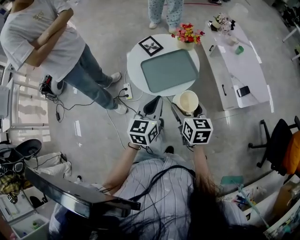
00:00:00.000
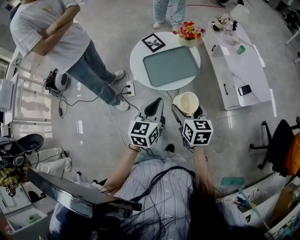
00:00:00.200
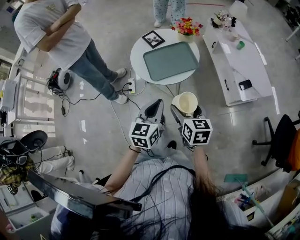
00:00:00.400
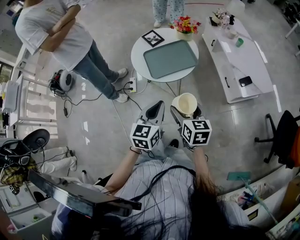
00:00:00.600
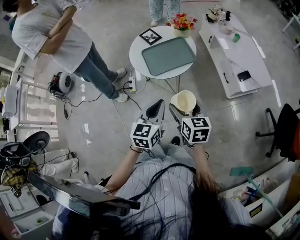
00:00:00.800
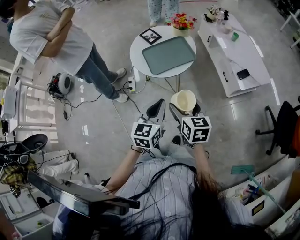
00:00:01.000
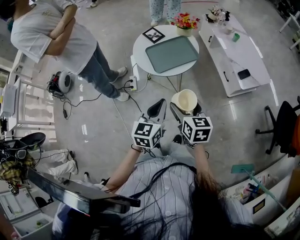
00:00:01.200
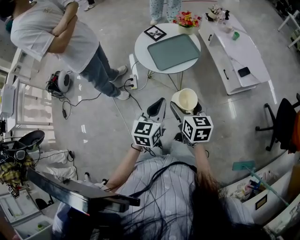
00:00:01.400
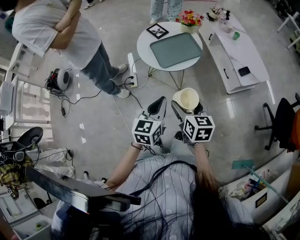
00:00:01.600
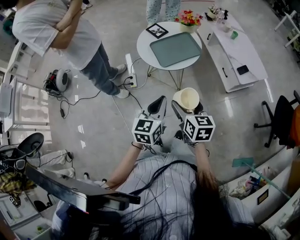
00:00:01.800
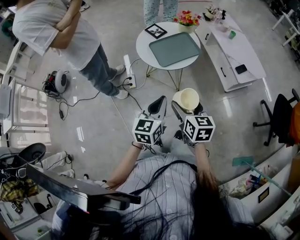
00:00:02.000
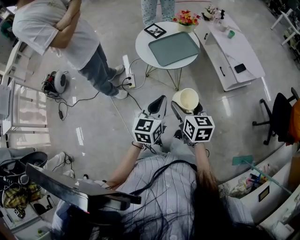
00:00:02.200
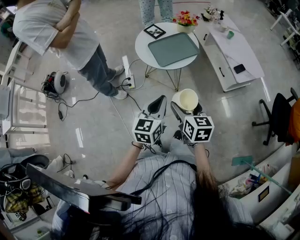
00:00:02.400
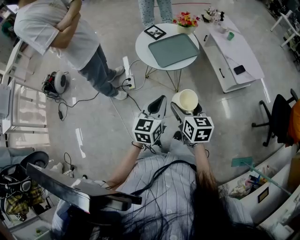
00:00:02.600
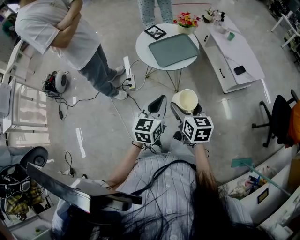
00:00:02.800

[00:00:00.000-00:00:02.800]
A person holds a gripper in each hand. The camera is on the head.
00:00:00.000 to 00:00:01.400: Both grippers move backward, roughly 15 cm.
00:00:01.400 to 00:00:02.800: There are only small adjustments of the grippers.

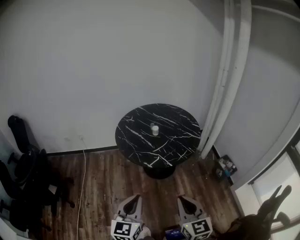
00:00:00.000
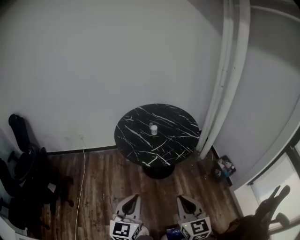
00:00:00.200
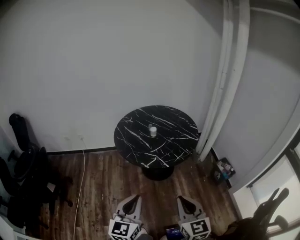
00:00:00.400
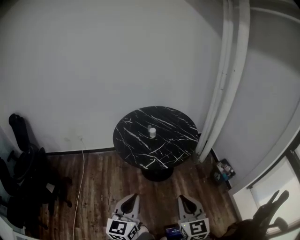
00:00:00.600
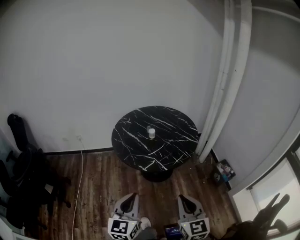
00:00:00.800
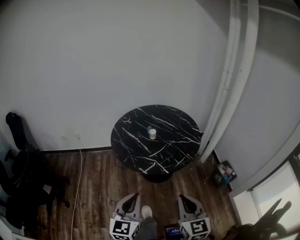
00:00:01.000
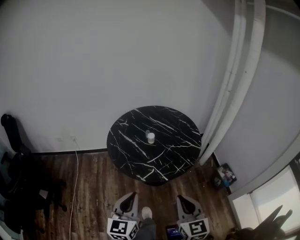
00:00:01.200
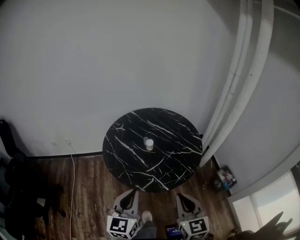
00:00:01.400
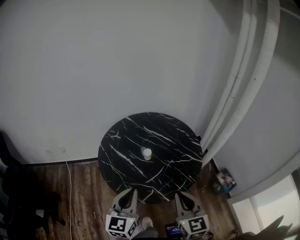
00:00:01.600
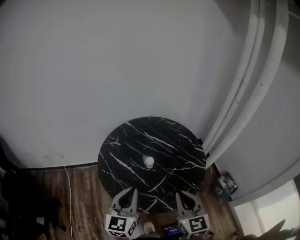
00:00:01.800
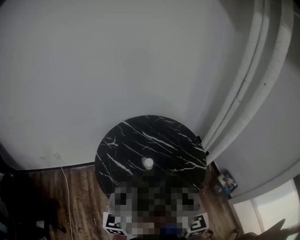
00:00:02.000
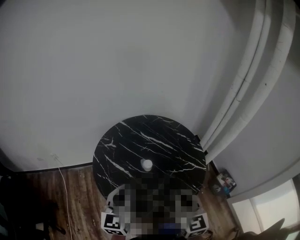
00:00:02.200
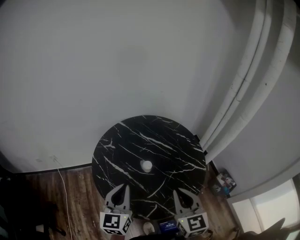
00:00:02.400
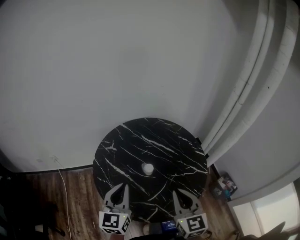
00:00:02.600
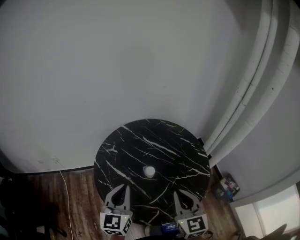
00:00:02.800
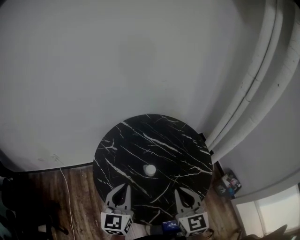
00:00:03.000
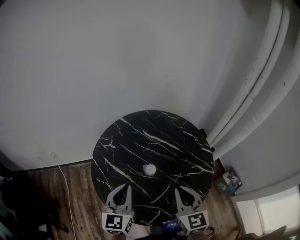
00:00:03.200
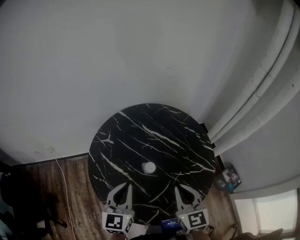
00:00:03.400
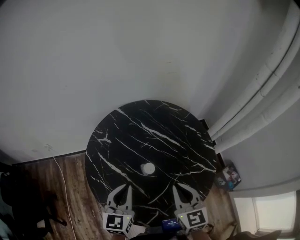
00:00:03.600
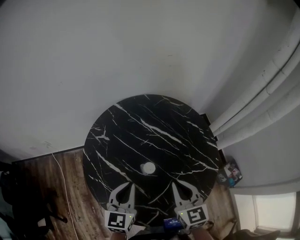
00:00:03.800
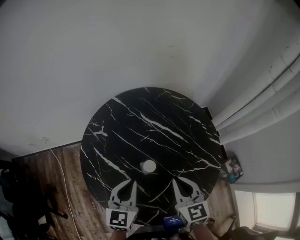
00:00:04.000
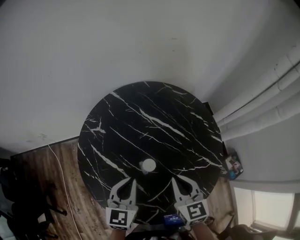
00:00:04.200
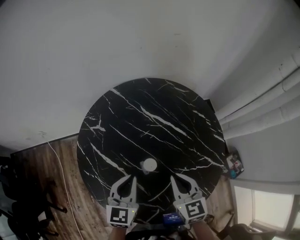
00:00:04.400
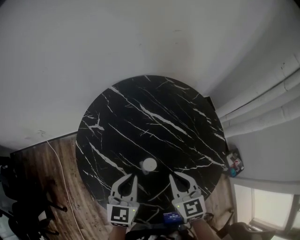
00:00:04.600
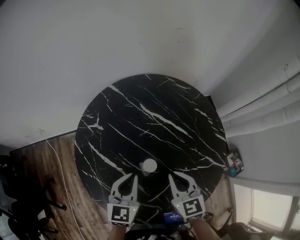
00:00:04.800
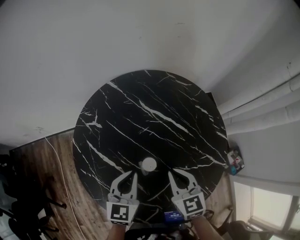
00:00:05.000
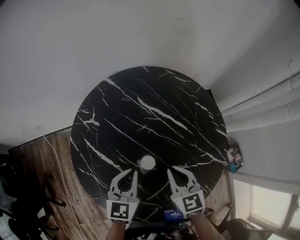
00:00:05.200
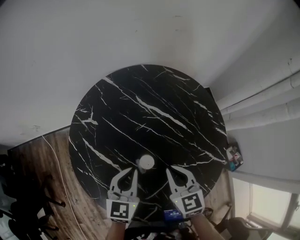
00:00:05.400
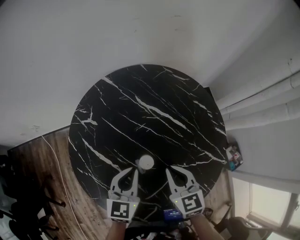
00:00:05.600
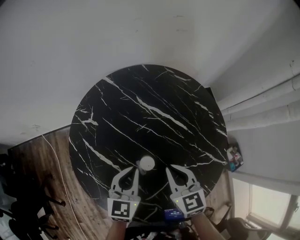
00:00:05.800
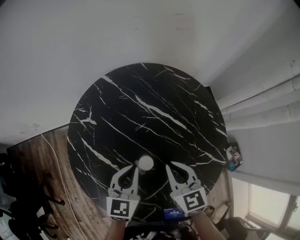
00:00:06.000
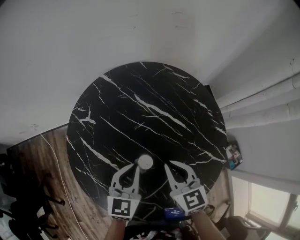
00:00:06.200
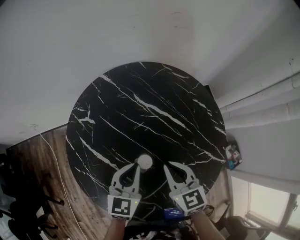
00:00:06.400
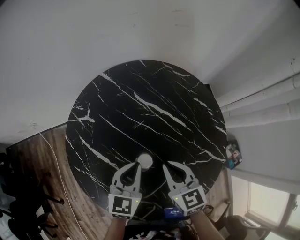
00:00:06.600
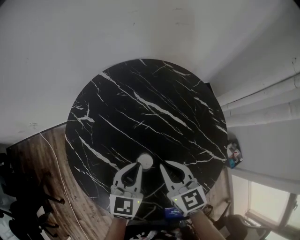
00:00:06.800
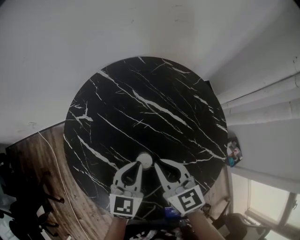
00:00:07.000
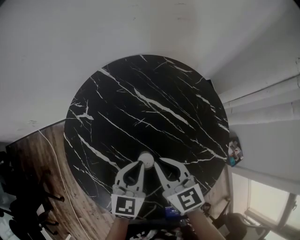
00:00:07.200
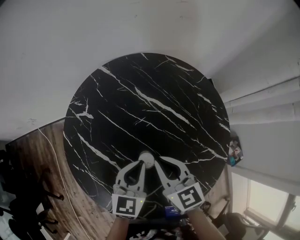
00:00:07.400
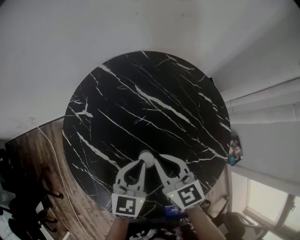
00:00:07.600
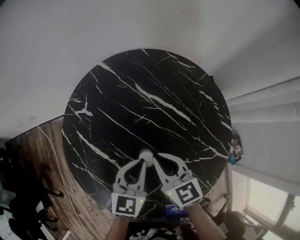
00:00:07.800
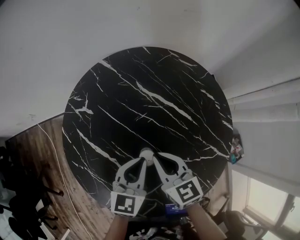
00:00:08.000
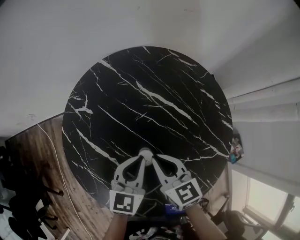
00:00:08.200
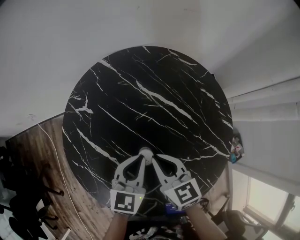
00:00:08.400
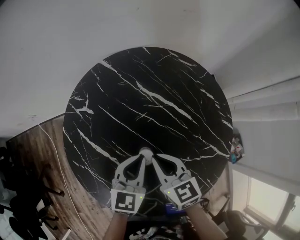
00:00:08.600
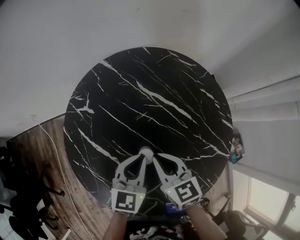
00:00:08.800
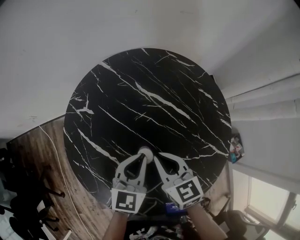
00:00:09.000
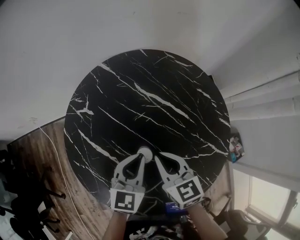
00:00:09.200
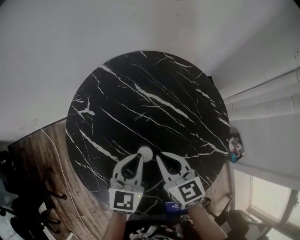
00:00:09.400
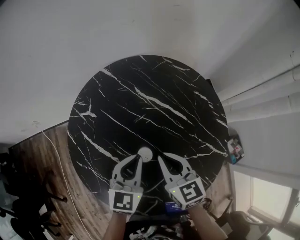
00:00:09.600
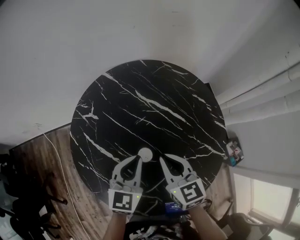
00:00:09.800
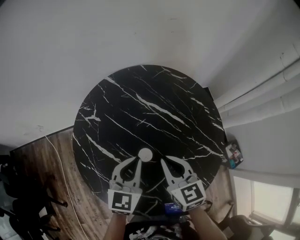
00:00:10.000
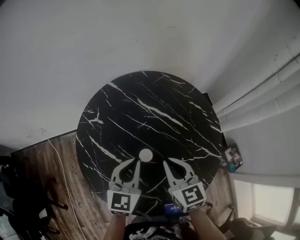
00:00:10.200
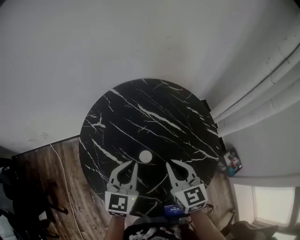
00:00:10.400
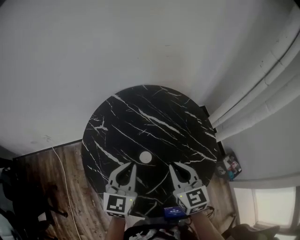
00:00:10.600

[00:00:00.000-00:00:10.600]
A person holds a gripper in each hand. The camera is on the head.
00:00:00.000 to 00:00:01.600: Both grippers move forward, some 30 cm.
00:00:01.600 to 00:00:03.000: Both grippers travel together forward, approximately 20 cm.
00:00:03.000 to 00:00:04.600: Both grippers move downward and forward, about 20 cm. The right gripper turns by approximately 20 degrees.
00:00:04.600 to 00:00:06.000: The grippers make only small movements.
00:00:06.000 to 00:00:09.000: There are only small adjustments of the grippers.
00:00:09.000 to 00:00:10.600: The left gripper heads upward and backward, covering approximately 10 cm, while the right gripper heads upward, backward and to the right, covering approximately 15 cm.

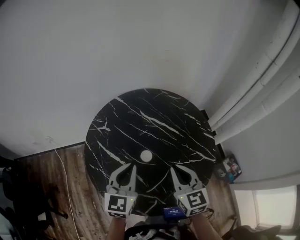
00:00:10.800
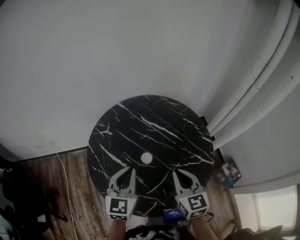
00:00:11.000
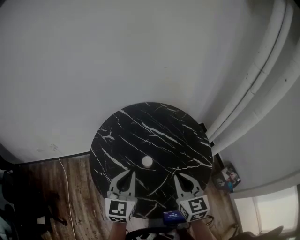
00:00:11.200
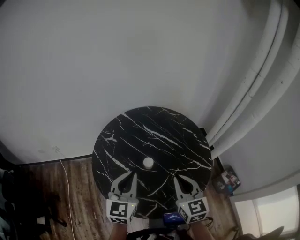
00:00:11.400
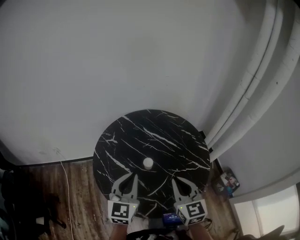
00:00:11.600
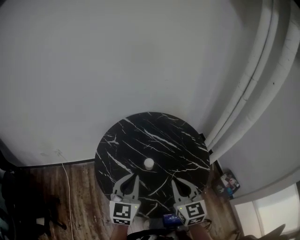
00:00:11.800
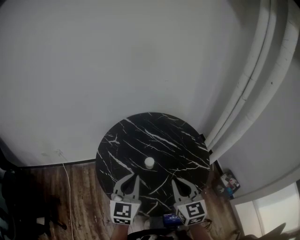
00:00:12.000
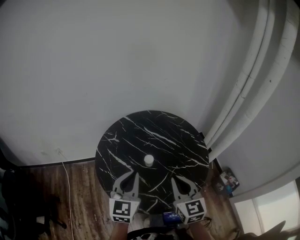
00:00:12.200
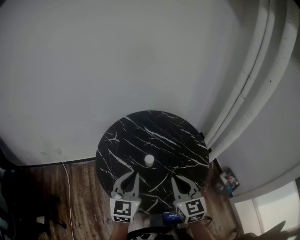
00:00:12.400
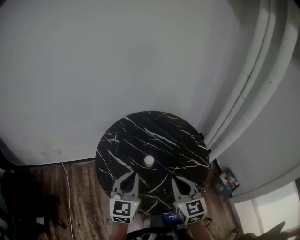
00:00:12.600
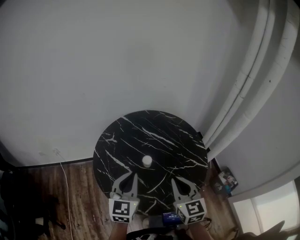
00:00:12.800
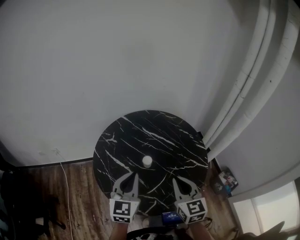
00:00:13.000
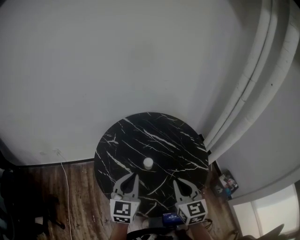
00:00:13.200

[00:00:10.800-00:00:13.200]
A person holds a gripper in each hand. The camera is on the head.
00:00:10.800 to 00:00:12.000: Both grippers travel together backward and upward, some 10 cm.
00:00:12.000 to 00:00:13.200: The grippers stay close to where they were, moving slightly.

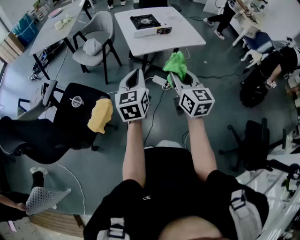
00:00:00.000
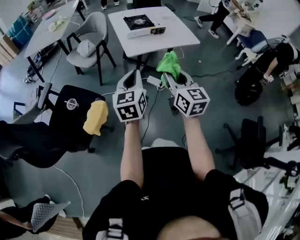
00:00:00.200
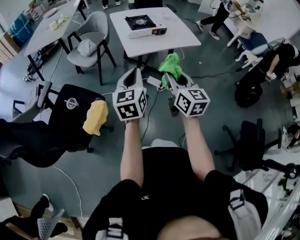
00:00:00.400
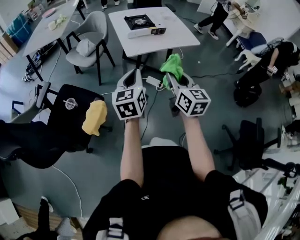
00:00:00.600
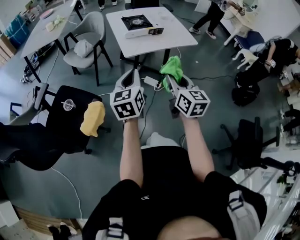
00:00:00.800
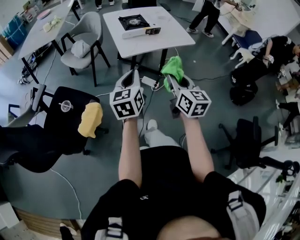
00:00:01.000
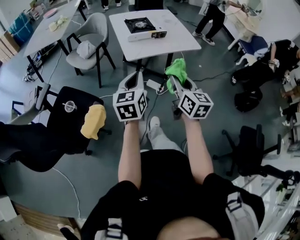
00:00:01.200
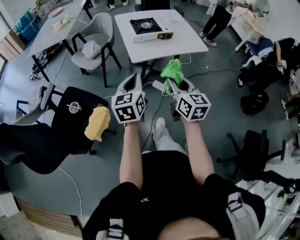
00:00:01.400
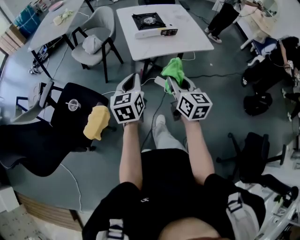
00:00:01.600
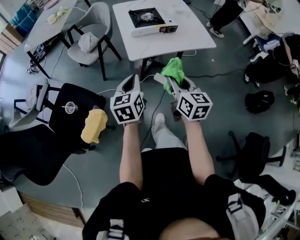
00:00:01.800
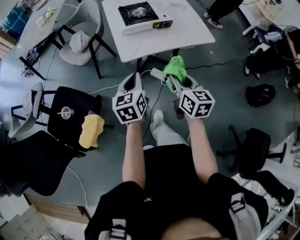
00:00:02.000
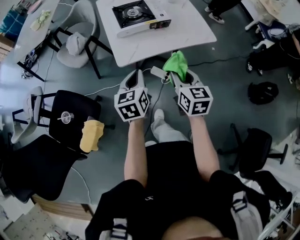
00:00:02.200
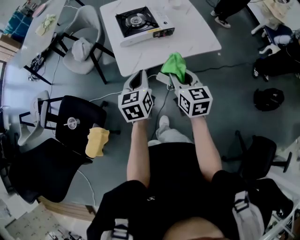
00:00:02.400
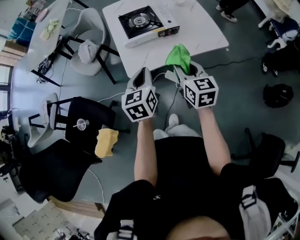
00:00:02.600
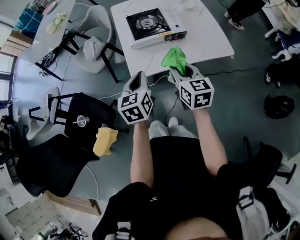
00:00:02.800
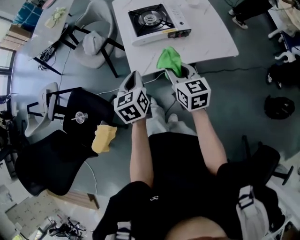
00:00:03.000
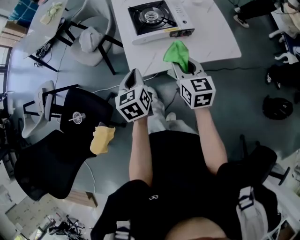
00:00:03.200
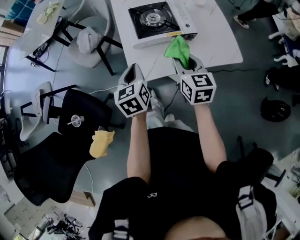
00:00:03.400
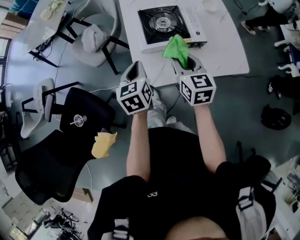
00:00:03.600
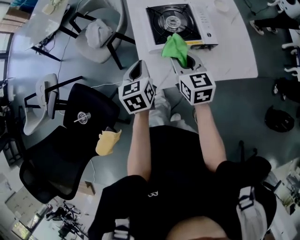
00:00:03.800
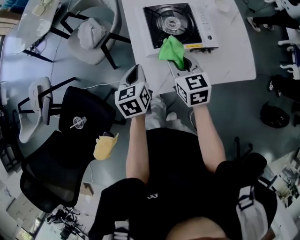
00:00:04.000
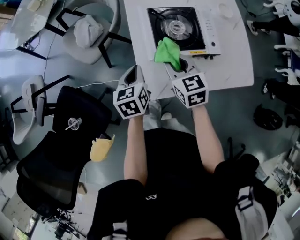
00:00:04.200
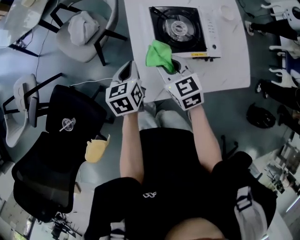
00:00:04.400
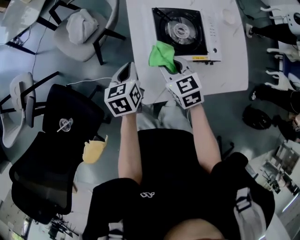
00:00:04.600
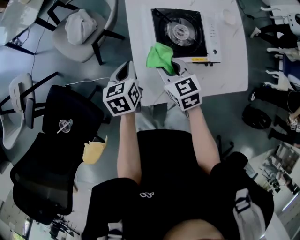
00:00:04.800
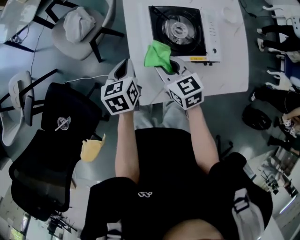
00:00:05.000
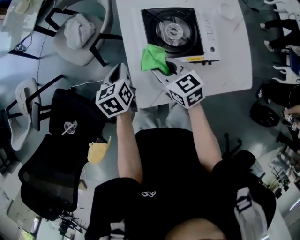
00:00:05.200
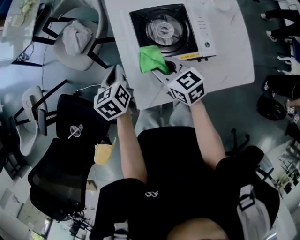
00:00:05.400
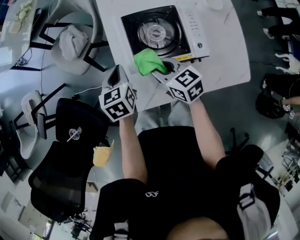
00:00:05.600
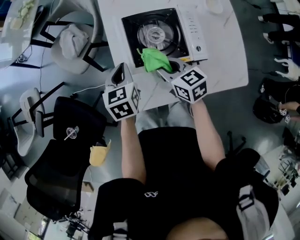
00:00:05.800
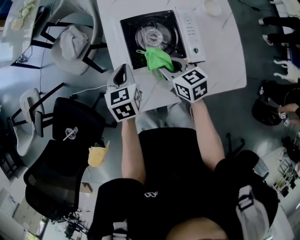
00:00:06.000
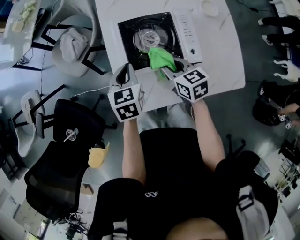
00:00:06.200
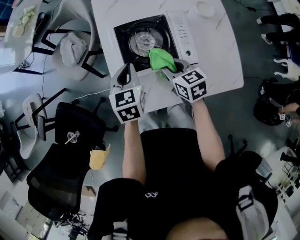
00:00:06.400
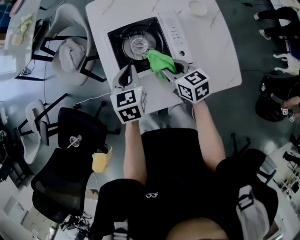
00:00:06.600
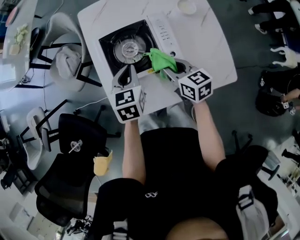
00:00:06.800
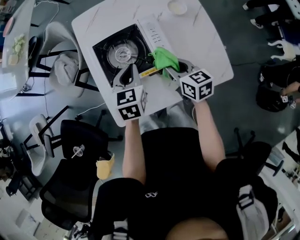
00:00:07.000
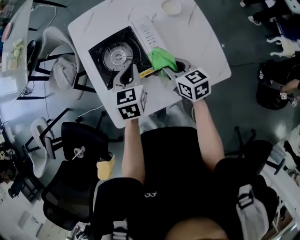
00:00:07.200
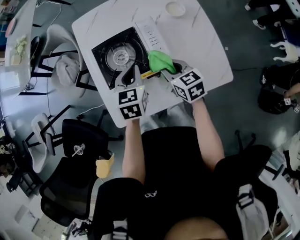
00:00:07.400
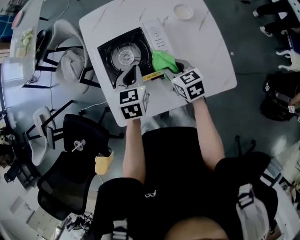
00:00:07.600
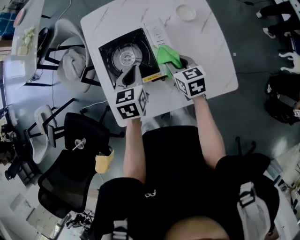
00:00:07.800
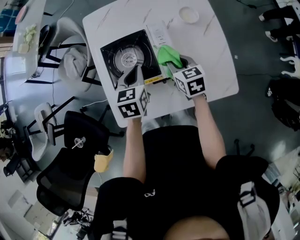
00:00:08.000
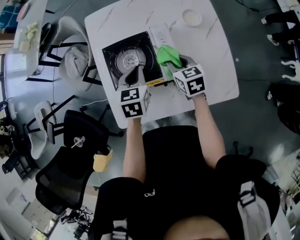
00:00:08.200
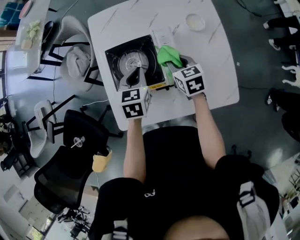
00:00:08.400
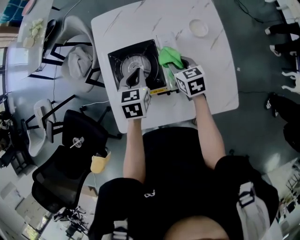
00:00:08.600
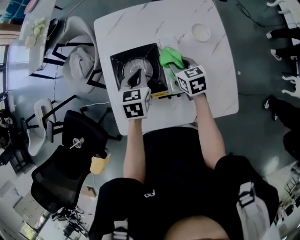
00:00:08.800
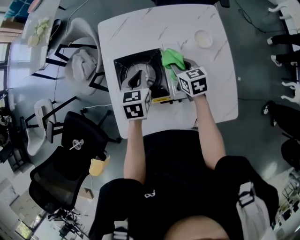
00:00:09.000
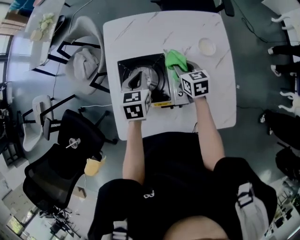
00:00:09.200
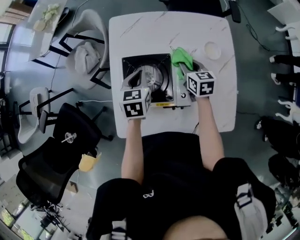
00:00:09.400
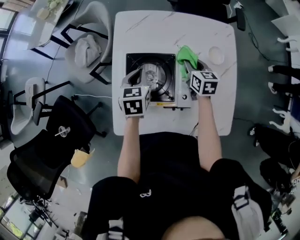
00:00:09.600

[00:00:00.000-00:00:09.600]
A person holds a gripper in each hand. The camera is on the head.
00:00:00.000 to 00:00:01.600: The two grippers go approximately 10 cm forward and downward.
00:00:01.600 to 00:00:03.200: The two grippers go about 30 cm forward.
00:00:03.200 to 00:00:04.800: The right gripper moves forward, to the left and downward, about 25 cm, and changes its angle by about 30 degrees; the left gripper shifts roughly 25 cm forward and downward.
00:00:04.800 to 00:00:06.400: The right gripper moves to the right, some 15 cm. The left gripper travels to the right and upward by approximately 15 cm, and rotates about 20 degrees.
00:00:06.400 to 00:00:08.000: Both grippers travel together to the right, about 15 cm.
00:00:08.000 to 00:00:09.600: The left gripper travels forward and to the left by about 10 cm, while the right gripper goes approximately 15 cm forward.
